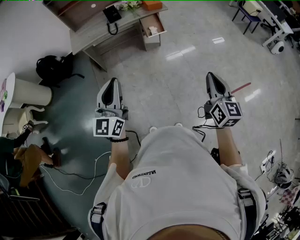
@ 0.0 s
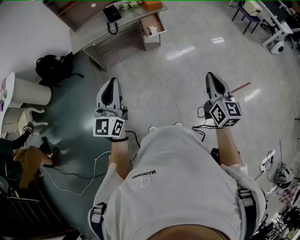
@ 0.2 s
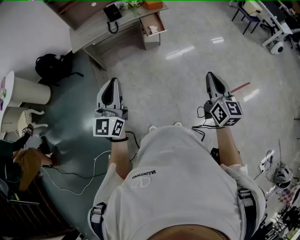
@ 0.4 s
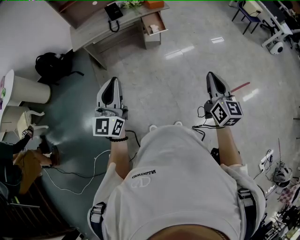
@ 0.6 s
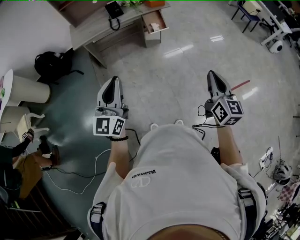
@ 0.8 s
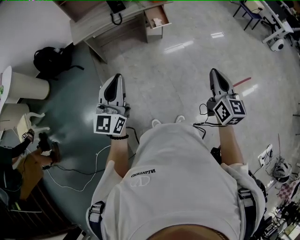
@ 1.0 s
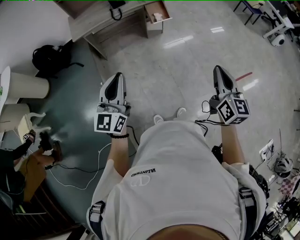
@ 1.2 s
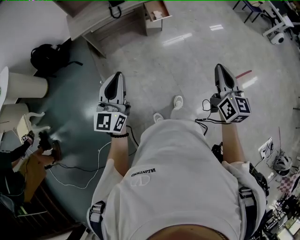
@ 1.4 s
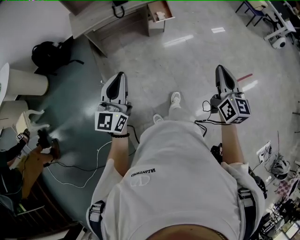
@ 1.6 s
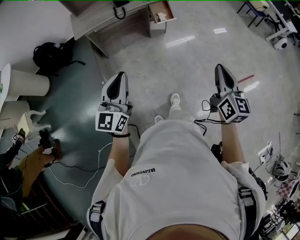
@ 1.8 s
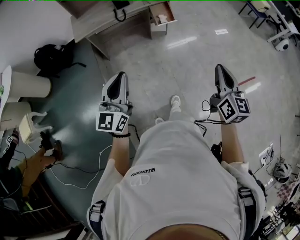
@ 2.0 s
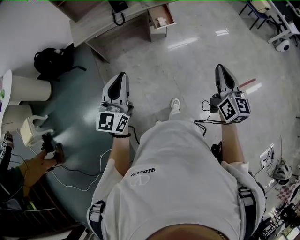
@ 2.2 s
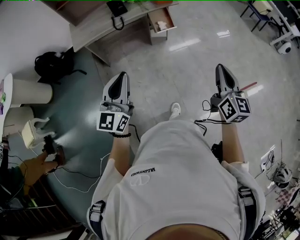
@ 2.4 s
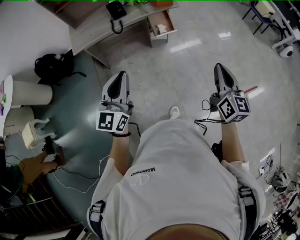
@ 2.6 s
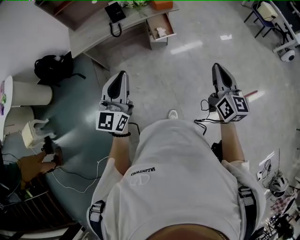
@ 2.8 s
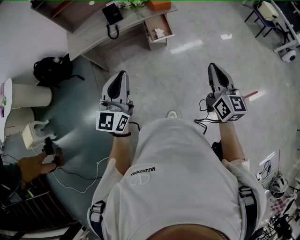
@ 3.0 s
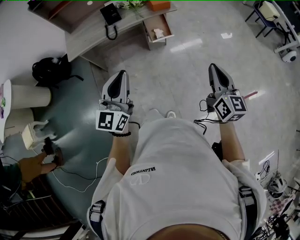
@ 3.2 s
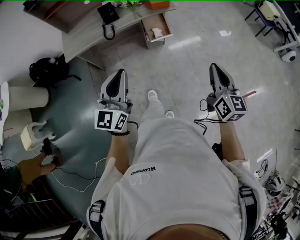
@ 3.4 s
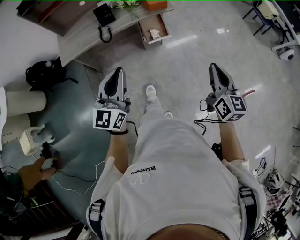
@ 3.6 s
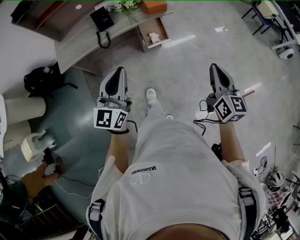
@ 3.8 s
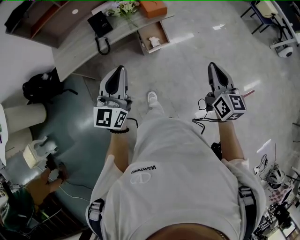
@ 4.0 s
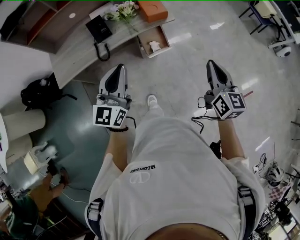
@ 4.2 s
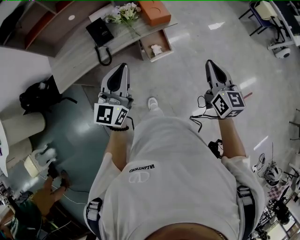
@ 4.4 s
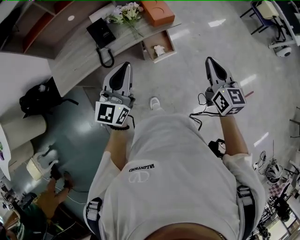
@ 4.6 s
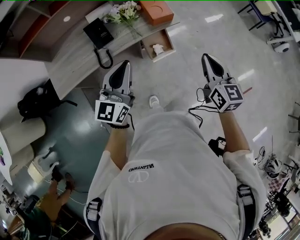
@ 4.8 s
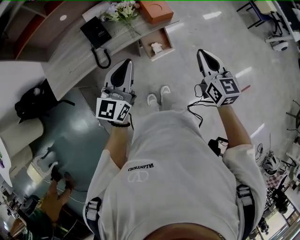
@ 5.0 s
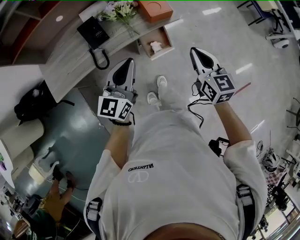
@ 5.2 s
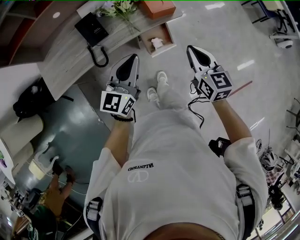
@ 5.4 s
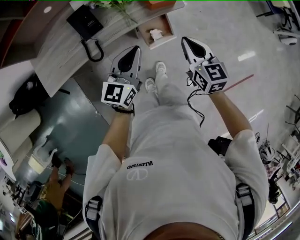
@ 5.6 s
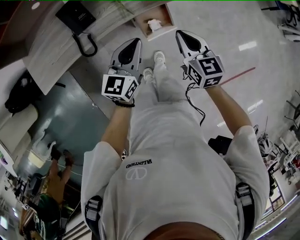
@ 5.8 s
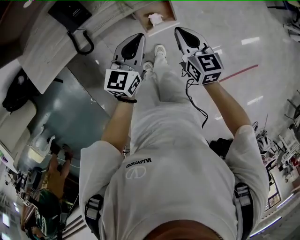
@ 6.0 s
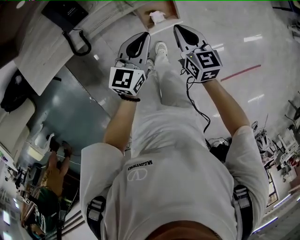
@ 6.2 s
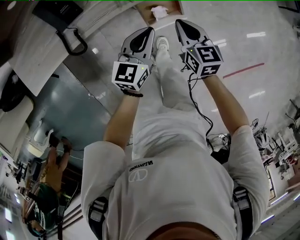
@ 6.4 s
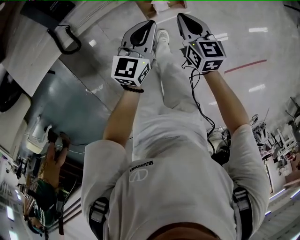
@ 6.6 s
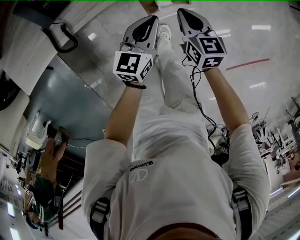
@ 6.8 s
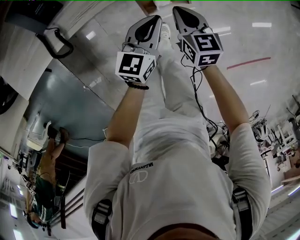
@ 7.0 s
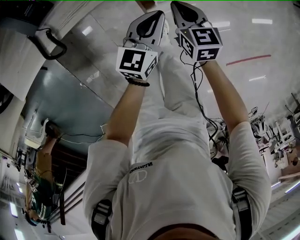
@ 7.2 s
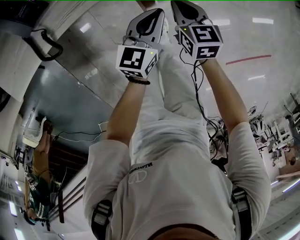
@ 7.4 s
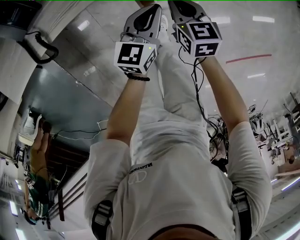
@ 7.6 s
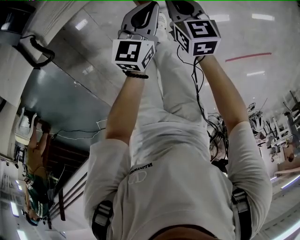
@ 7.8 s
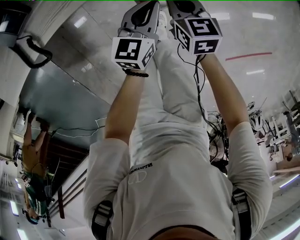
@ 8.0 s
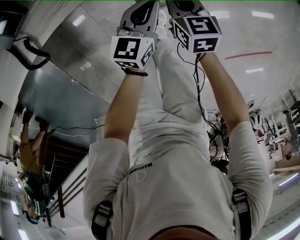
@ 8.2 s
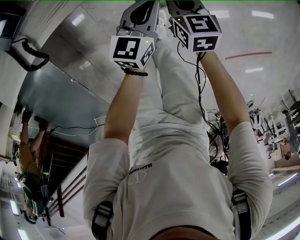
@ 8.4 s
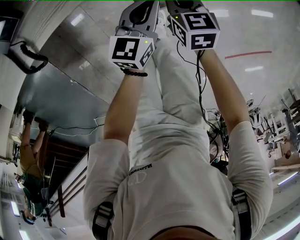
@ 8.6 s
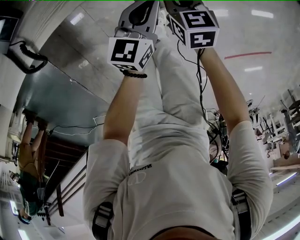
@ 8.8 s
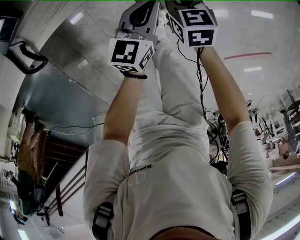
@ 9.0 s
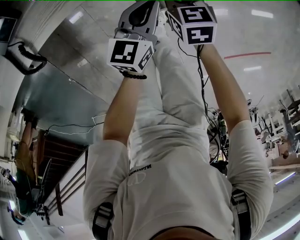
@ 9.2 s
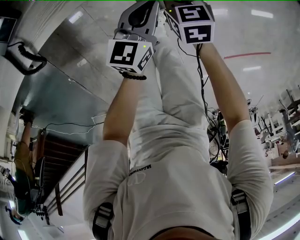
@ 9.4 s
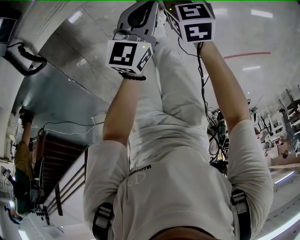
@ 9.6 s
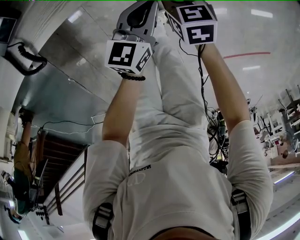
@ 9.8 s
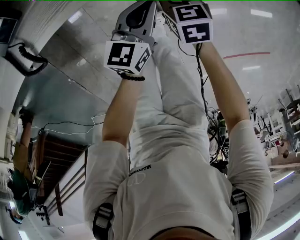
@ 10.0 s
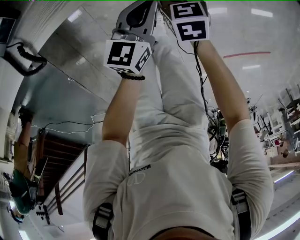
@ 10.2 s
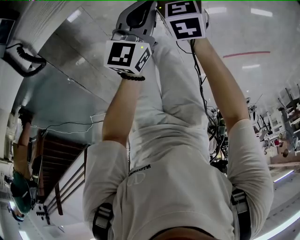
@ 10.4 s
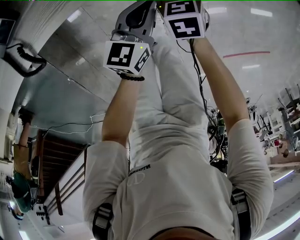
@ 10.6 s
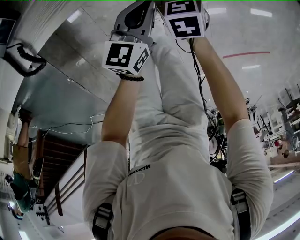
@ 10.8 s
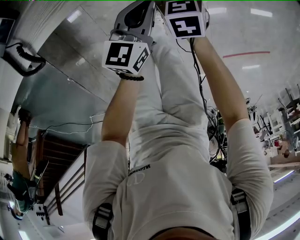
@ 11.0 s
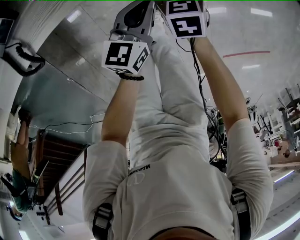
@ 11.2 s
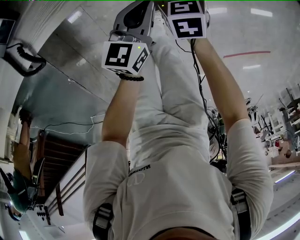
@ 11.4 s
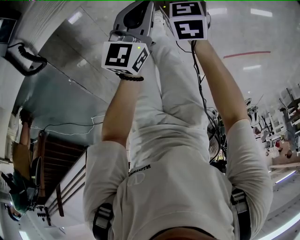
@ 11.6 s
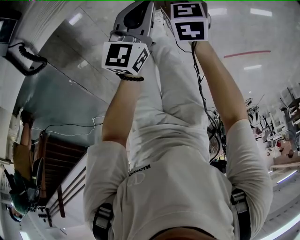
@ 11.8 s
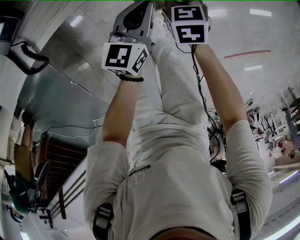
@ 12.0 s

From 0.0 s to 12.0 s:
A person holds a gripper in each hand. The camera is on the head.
From 0.0 s to 1.6 s: The grippers both shift to the left by approximately 5 cm.
From 1.6 s to 3.0 s: The right gripper is displaced forward by approximately 25 cm. The left gripper is displaced forward and to the right by roughly 25 cm.
From 3.0 s to 4.4 s: Both grippers move forward, some 30 cm.
From 4.4 s to 6.0 s: The left gripper travels downward and forward by about 30 cm, and swivels approximately 30 degrees. Meanwhile the right gripper moves downward, forward and to the left, approximately 30 cm, and turns by approximately 20 degrees.
From 6.0 s to 7.6 s: Both grippers move downward, about 20 cm.
From 7.6 s to 9.0 s: The right gripper heads downward, covering approximately 5 cm.
From 9.0 s to 10.4 s: The right gripper opens its fingers.
From 10.4 s to 12.0 s: The right gripper closes its fingers.

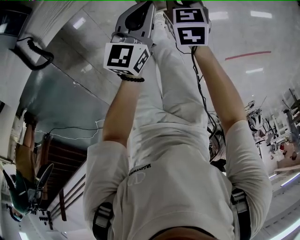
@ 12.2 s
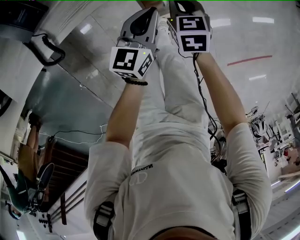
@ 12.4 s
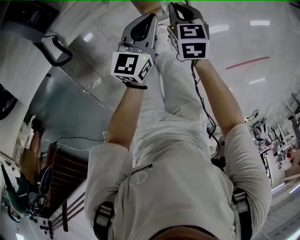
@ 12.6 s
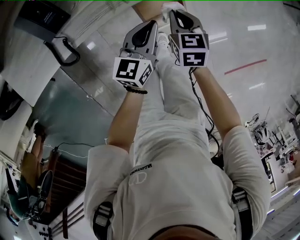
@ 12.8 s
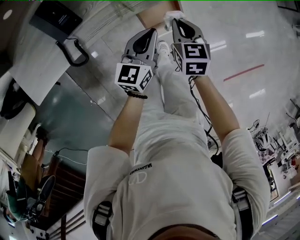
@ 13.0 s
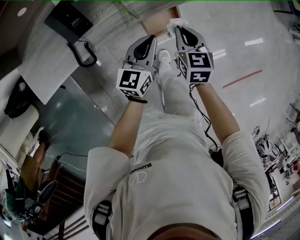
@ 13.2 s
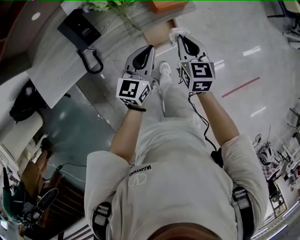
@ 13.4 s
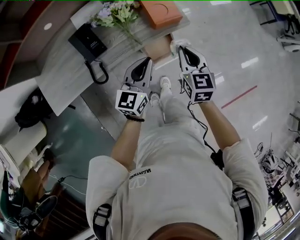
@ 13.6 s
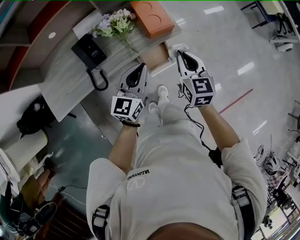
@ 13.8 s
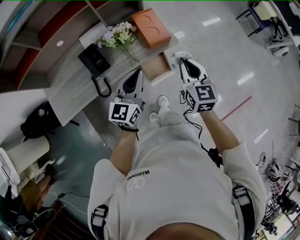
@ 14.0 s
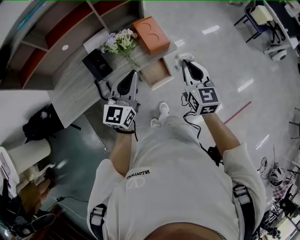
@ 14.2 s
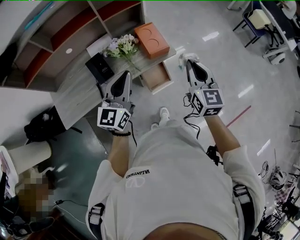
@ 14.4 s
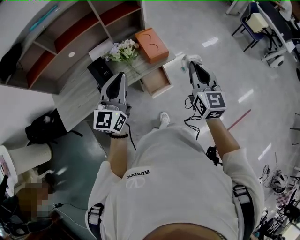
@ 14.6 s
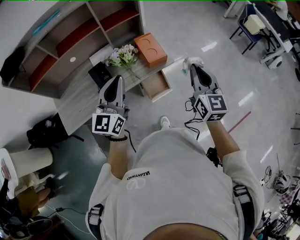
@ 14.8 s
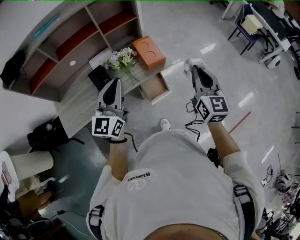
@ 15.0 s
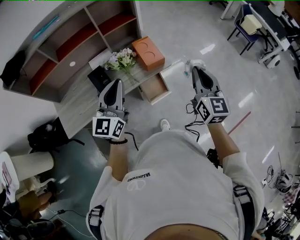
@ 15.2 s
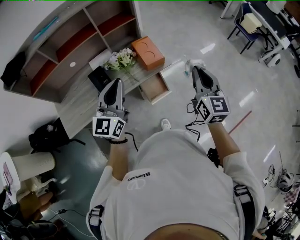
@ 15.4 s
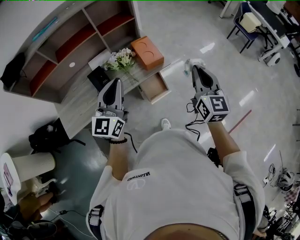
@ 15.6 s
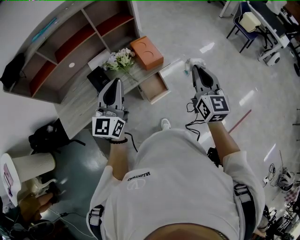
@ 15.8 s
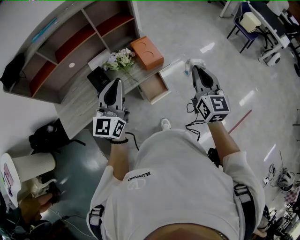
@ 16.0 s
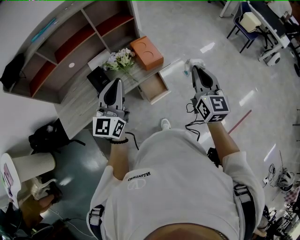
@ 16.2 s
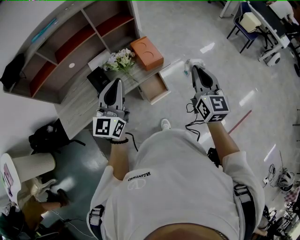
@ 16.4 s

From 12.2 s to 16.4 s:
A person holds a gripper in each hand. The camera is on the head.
From 12.2 s to 13.6 s: The grippers both shift upward by roughly 35 cm. The right gripper rotates approximately 30 degrees.
From 13.6 s to 15.0 s: The grippers both shift upward by some 25 cm. The right gripper swivels about 30 degrees. Meanwhile the left gripper swivels approximately 30 degrees.
From 15.0 s to 16.4 s: The grippers make only small movements.

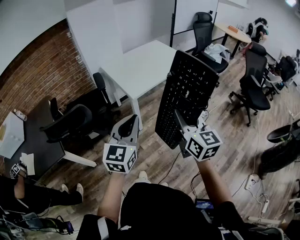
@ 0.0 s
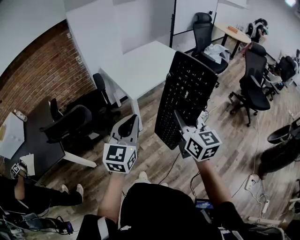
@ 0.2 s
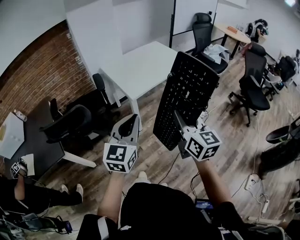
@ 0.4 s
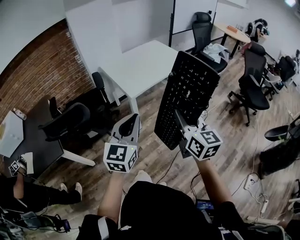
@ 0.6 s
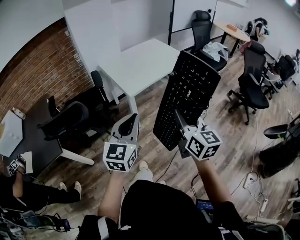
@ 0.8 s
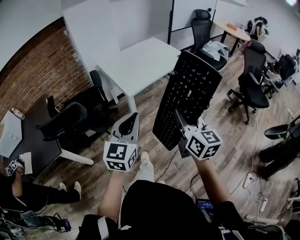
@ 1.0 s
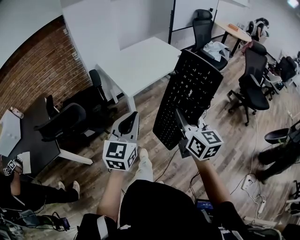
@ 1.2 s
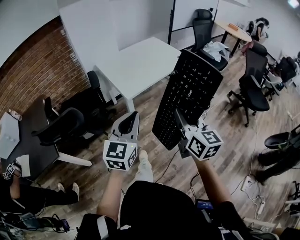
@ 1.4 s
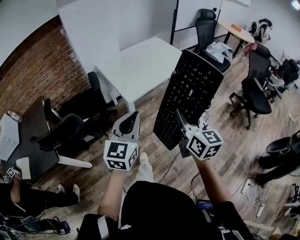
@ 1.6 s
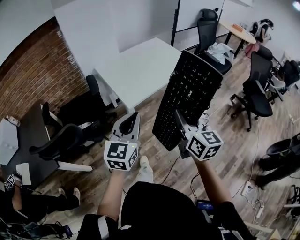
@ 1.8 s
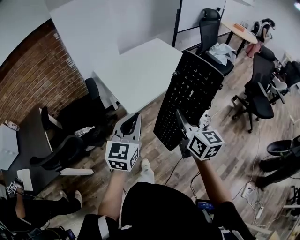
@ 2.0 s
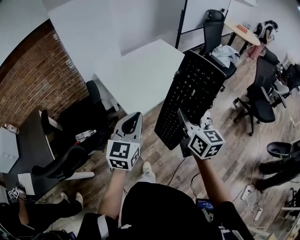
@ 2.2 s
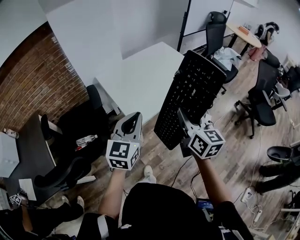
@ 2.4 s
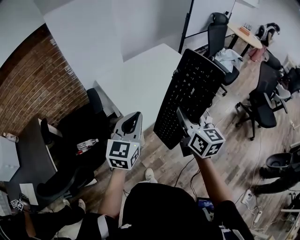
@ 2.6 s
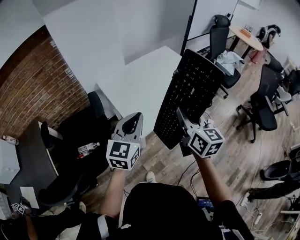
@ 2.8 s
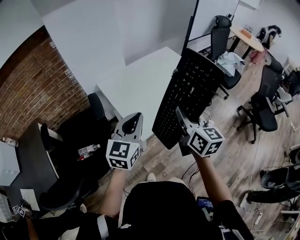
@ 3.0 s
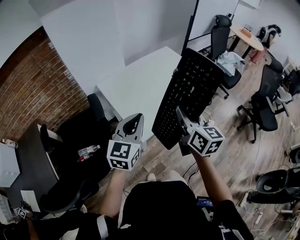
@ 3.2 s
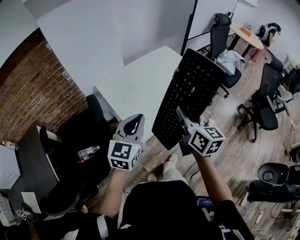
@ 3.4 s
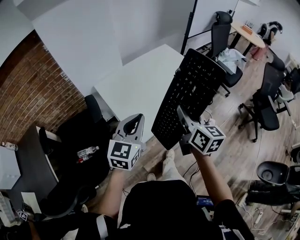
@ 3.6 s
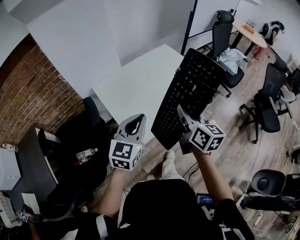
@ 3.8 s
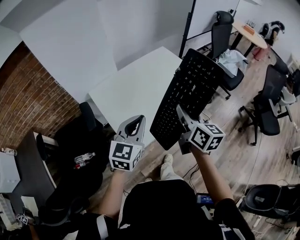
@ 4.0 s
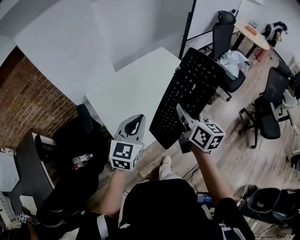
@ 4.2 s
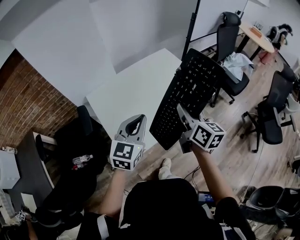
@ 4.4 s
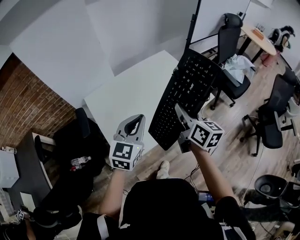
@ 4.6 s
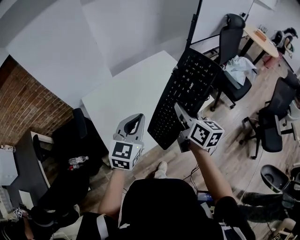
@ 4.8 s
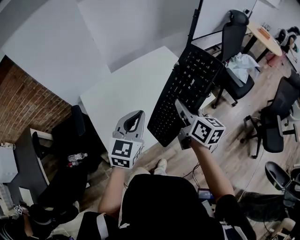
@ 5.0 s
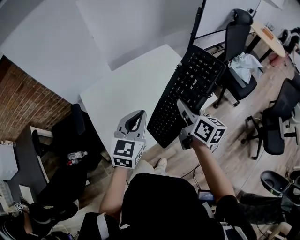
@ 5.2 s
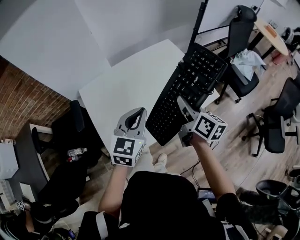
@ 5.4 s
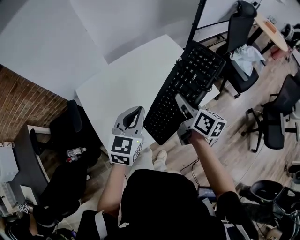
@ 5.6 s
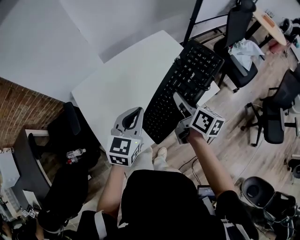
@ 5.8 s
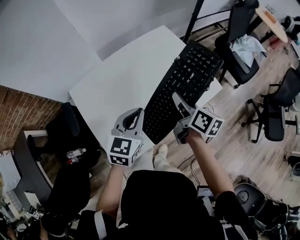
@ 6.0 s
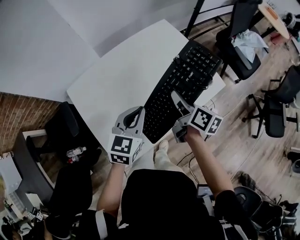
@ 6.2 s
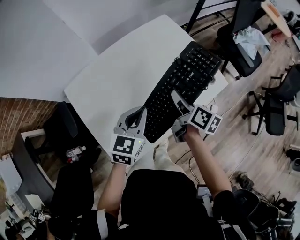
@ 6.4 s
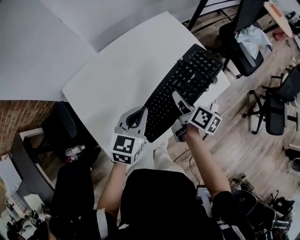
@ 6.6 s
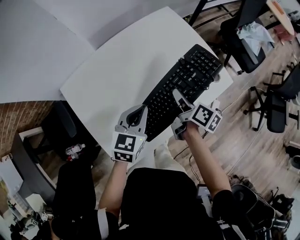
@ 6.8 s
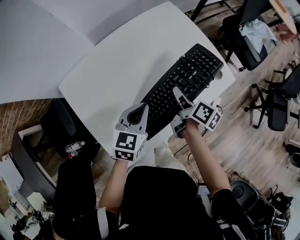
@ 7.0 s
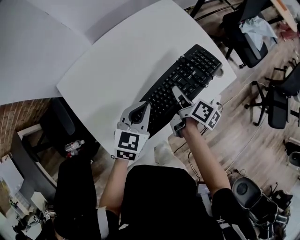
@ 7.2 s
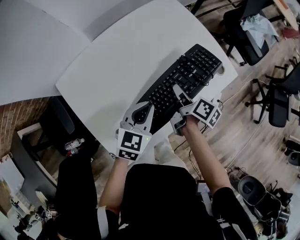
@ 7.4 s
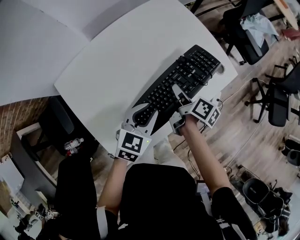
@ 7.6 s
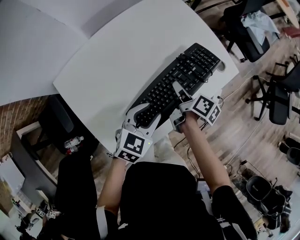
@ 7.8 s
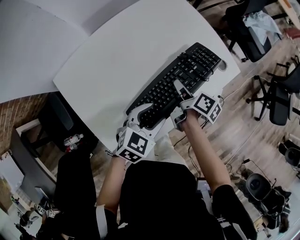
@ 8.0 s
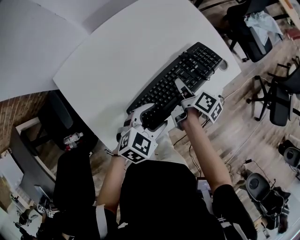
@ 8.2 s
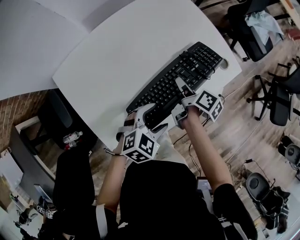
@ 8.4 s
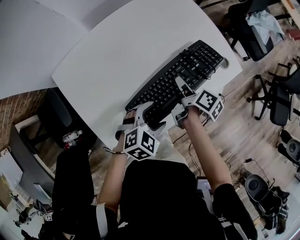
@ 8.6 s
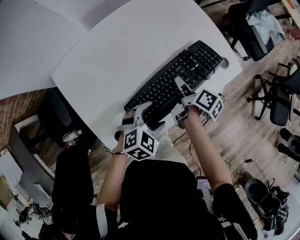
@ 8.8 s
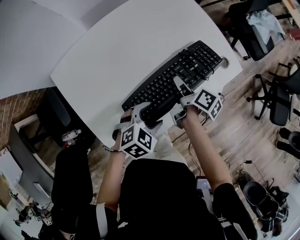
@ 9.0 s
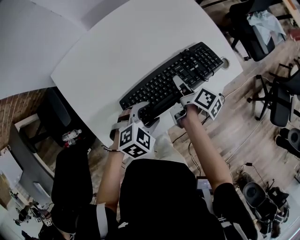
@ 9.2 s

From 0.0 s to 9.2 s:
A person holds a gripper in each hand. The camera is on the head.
From 0.0 s to 1.6 s: Both grippers move forward, roughly 10 cm.
From 1.6 s to 3.0 s: Both grippers travel together forward, some 30 cm.
From 3.0 s to 4.6 s: The two grippers go about 25 cm forward and to the right.
From 4.6 s to 6.2 s: The right gripper moves downward and forward, approximately 20 cm, and changes its angle by about 30 degrees. The left gripper travels forward and downward by about 15 cm.
From 6.2 s to 7.6 s: The two grippers go approximately 15 cm downward. The right gripper rotates approximately 20 degrees.
From 7.6 s to 9.2 s: The left gripper heads downward and backward, covering some 10 cm, rotates about 30 degrees, and opens its fingers.
